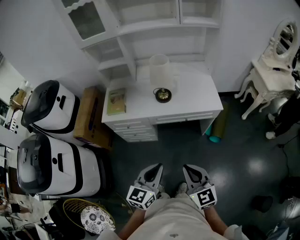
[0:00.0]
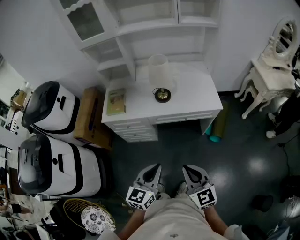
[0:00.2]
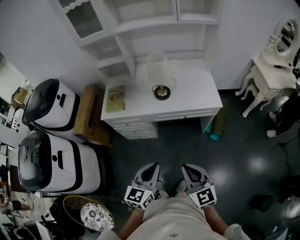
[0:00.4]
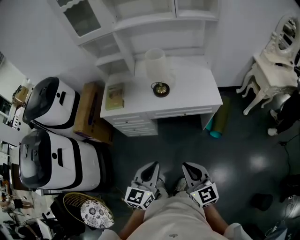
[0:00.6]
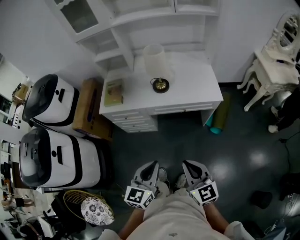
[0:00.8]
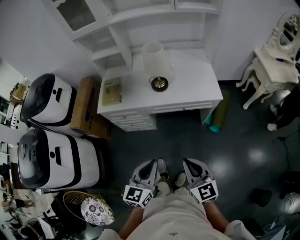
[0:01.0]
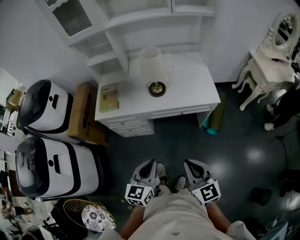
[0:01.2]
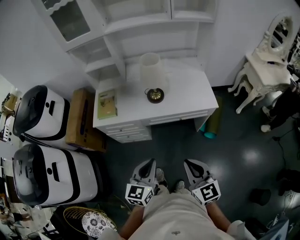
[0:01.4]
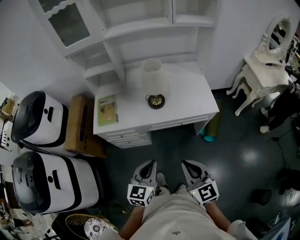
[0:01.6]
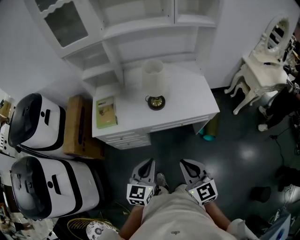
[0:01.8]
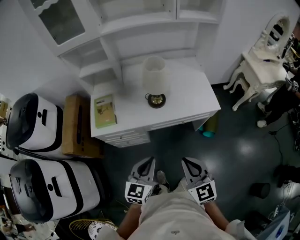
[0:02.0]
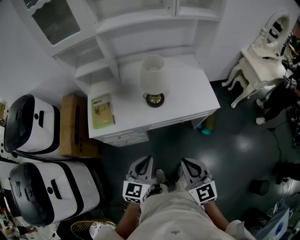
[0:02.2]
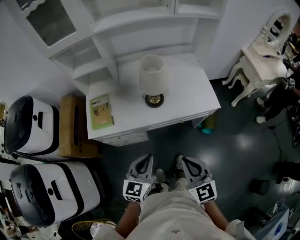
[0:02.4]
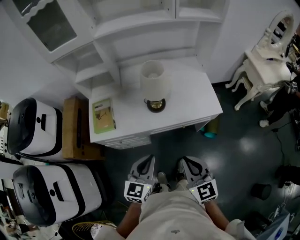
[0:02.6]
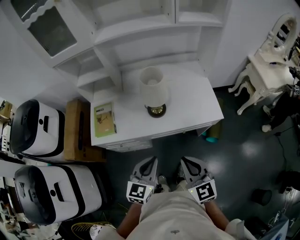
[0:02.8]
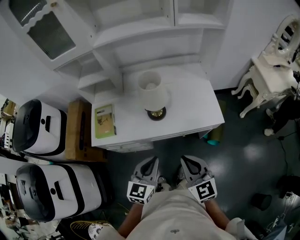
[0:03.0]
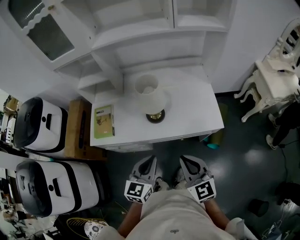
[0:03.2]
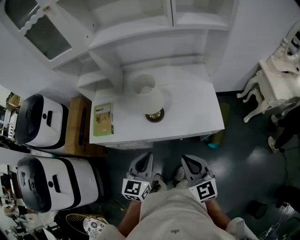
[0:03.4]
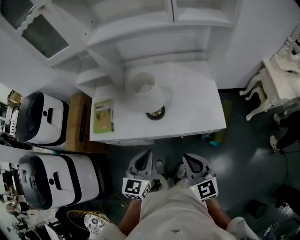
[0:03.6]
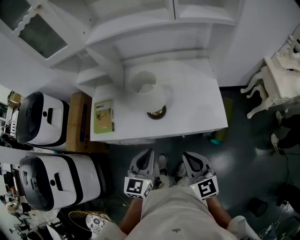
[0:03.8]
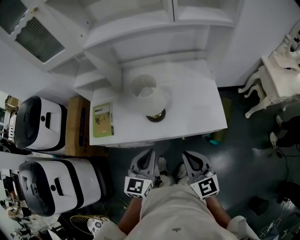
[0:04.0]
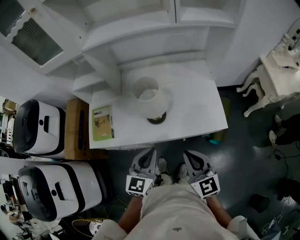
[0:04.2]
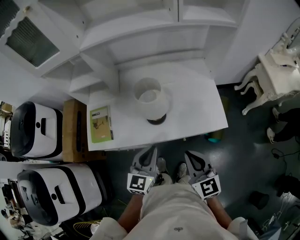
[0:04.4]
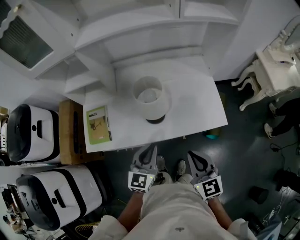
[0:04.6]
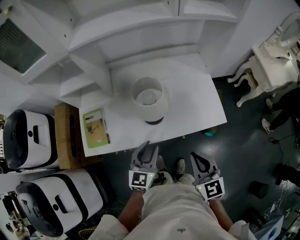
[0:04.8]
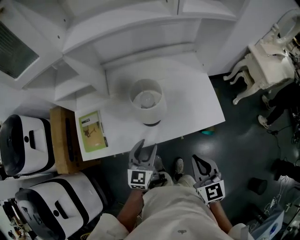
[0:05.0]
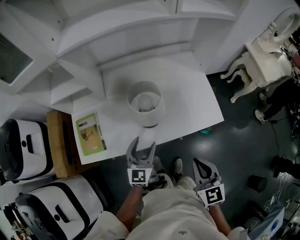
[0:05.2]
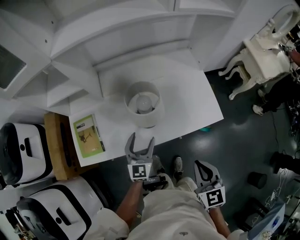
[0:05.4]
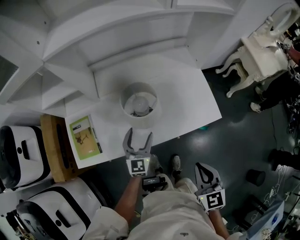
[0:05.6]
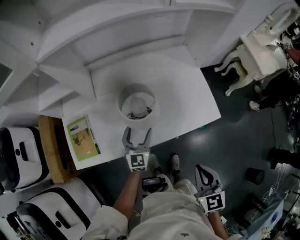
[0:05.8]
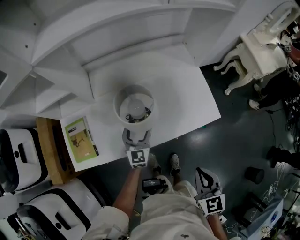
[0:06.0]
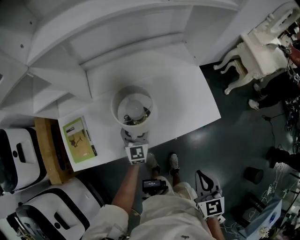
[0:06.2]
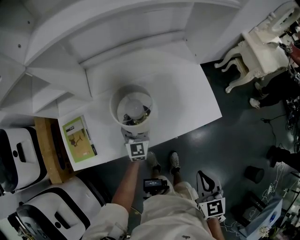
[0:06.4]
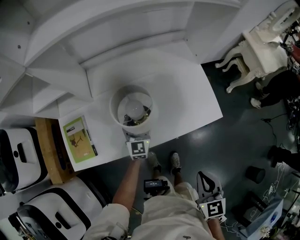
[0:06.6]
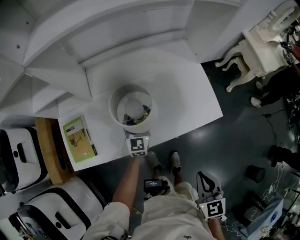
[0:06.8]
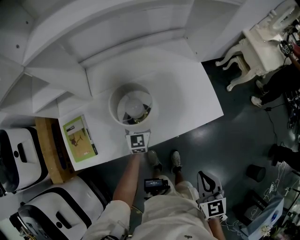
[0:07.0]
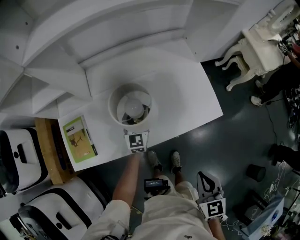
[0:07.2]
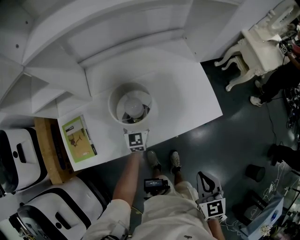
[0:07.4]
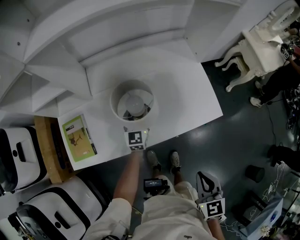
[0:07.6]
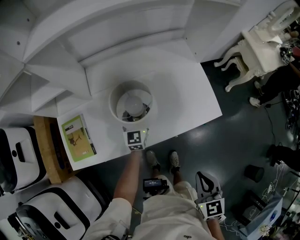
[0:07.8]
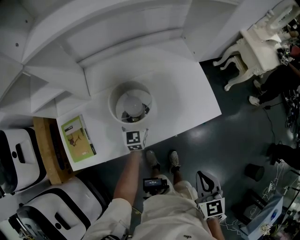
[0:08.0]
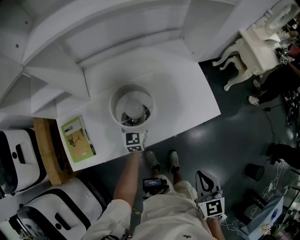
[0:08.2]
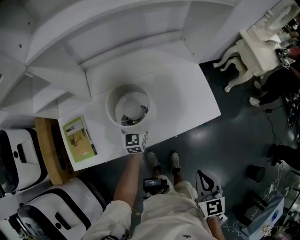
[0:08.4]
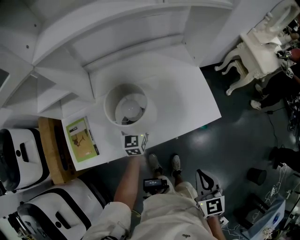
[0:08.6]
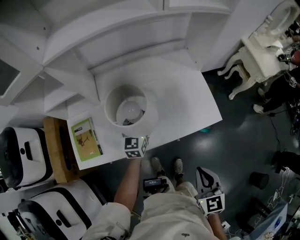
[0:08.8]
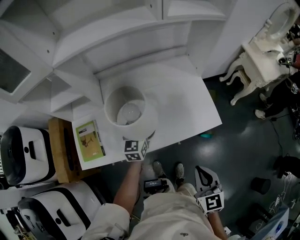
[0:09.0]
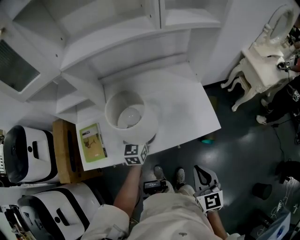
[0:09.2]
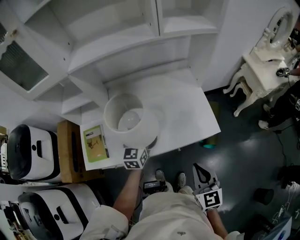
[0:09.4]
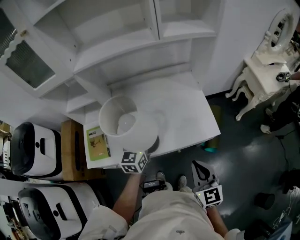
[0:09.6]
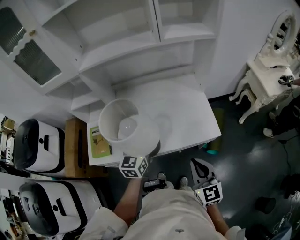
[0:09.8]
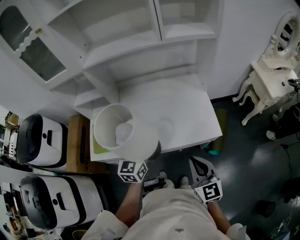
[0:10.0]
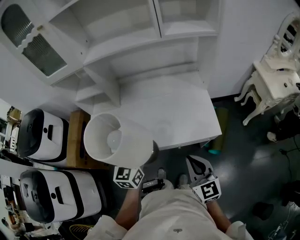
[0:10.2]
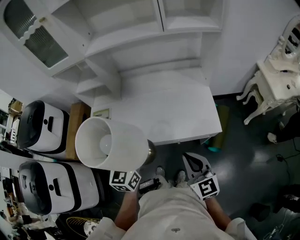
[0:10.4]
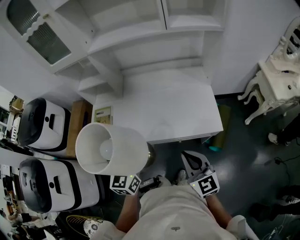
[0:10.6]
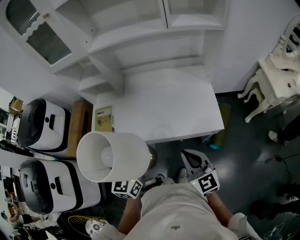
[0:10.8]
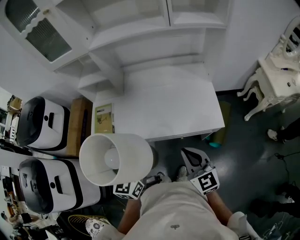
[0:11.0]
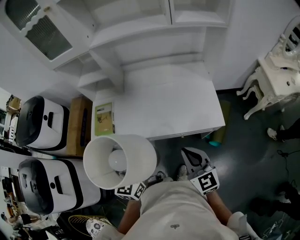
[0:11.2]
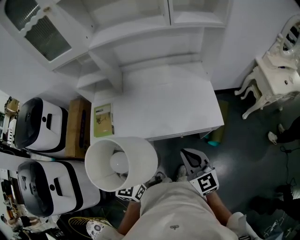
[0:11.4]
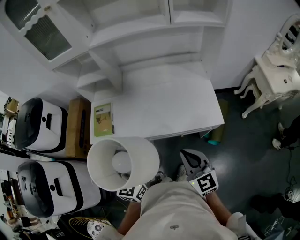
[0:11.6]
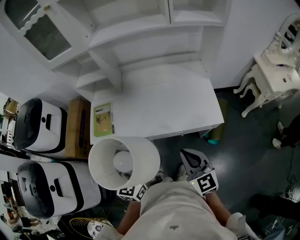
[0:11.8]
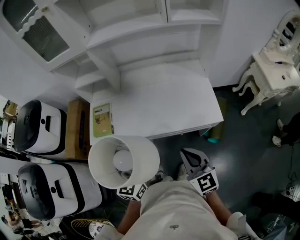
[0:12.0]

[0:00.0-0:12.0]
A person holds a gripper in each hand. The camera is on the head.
0:00.0 to 0:01.6: Both grippers move forward, some 10 cm.
0:01.6 to 0:03.0: The two grippers go approximately 15 cm forward.
0:03.0 to 0:04.4: The grippers both shift forward by about 10 cm.
0:04.4 to 0:06.0: The left gripper heads forward and downward, covering about 25 cm, and opens. The right gripper shifts about 5 cm downward, and rotates roughly 30 degrees.
0:06.0 to 0:07.6: The left gripper shifts about 5 cm forward, and closes up.
0:07.6 to 0:09.0: The left gripper is displaced upward by about 10 cm.
0:09.0 to 0:10.4: The left gripper travels backward and upward by about 25 cm, while the right gripper is displaced upward by approximately 5 cm, and swivels roughly 30 degrees.
0:10.4 to 0:12.0: The right gripper travels to the left by about 5 cm. Meanwhile the left gripper shifts about 5 cm backward.

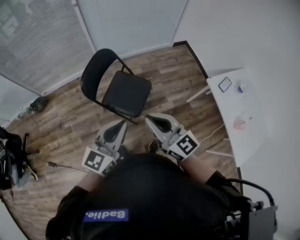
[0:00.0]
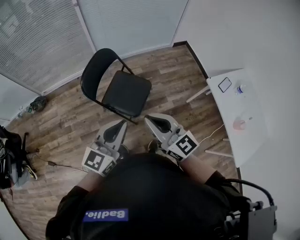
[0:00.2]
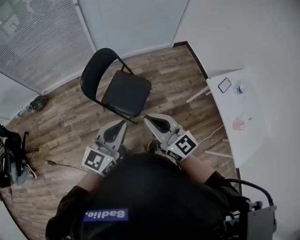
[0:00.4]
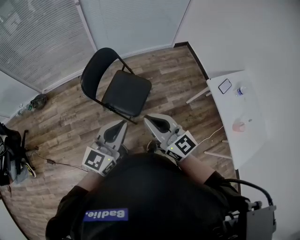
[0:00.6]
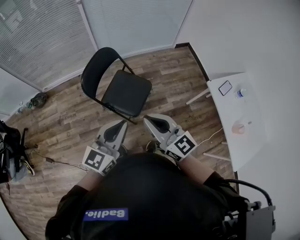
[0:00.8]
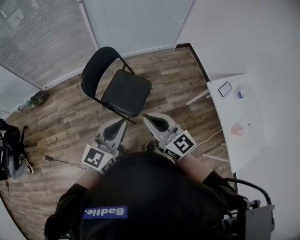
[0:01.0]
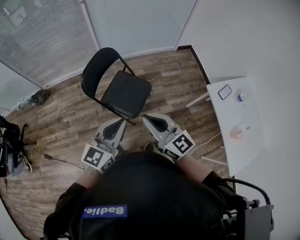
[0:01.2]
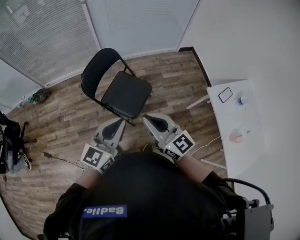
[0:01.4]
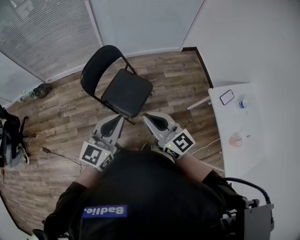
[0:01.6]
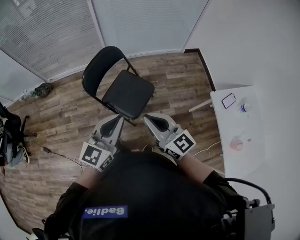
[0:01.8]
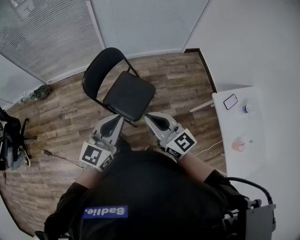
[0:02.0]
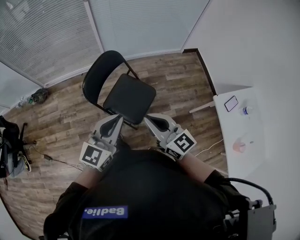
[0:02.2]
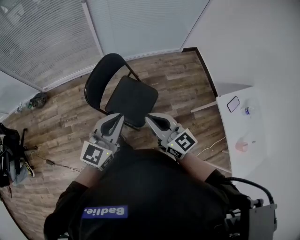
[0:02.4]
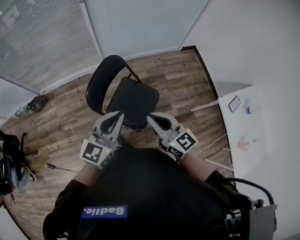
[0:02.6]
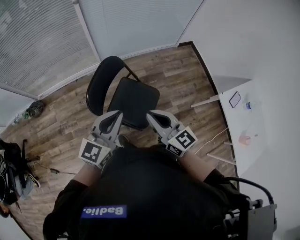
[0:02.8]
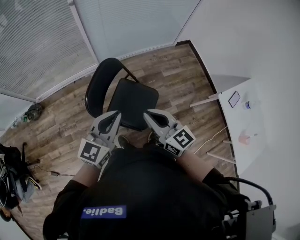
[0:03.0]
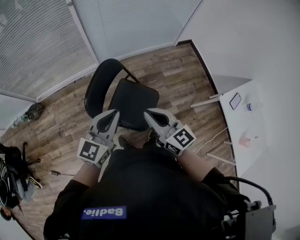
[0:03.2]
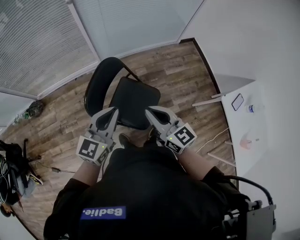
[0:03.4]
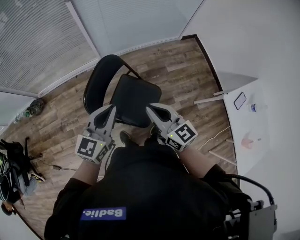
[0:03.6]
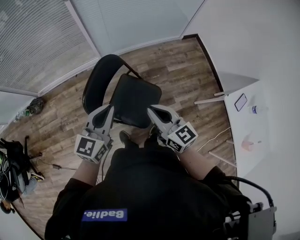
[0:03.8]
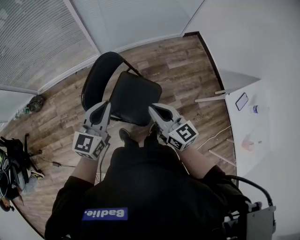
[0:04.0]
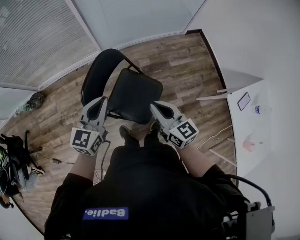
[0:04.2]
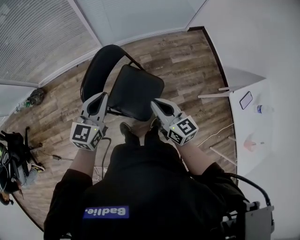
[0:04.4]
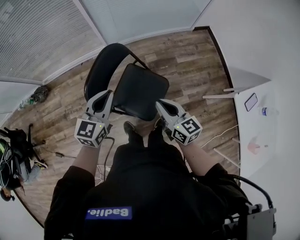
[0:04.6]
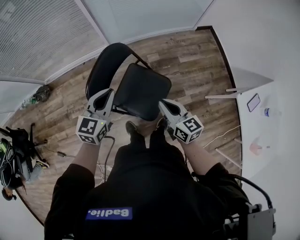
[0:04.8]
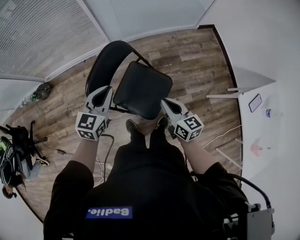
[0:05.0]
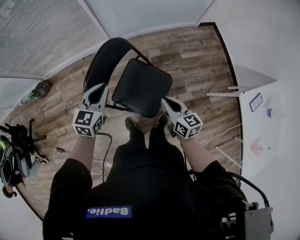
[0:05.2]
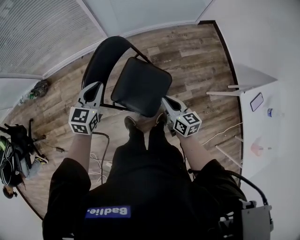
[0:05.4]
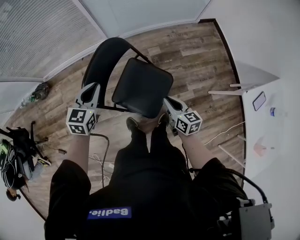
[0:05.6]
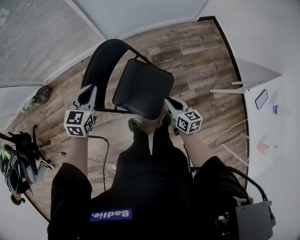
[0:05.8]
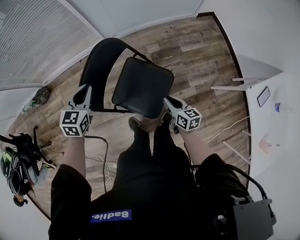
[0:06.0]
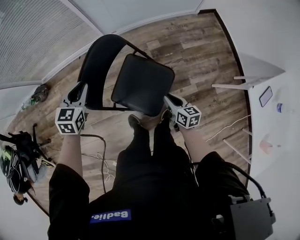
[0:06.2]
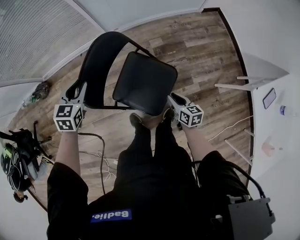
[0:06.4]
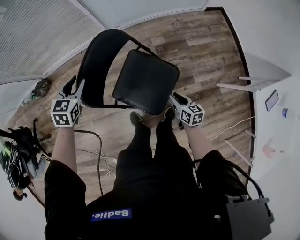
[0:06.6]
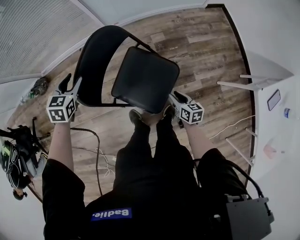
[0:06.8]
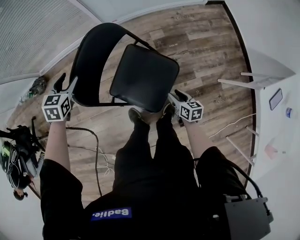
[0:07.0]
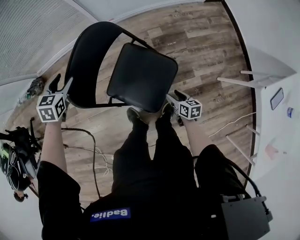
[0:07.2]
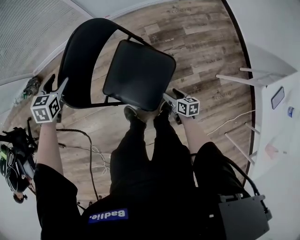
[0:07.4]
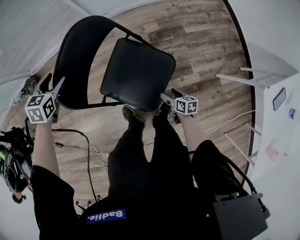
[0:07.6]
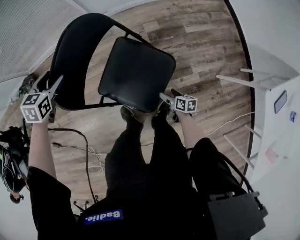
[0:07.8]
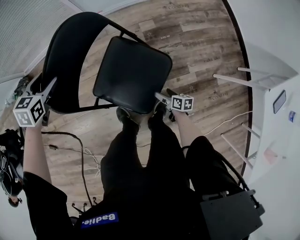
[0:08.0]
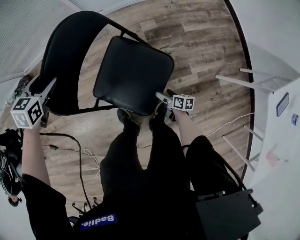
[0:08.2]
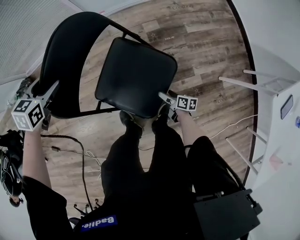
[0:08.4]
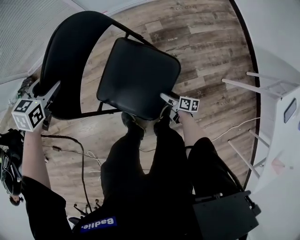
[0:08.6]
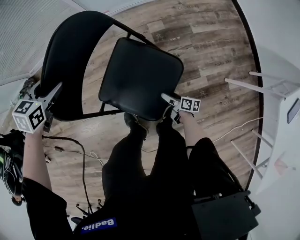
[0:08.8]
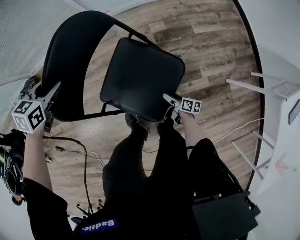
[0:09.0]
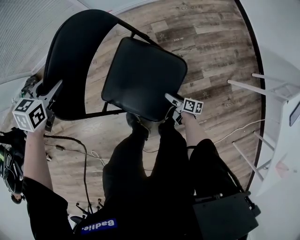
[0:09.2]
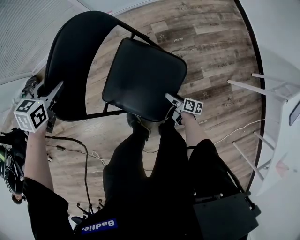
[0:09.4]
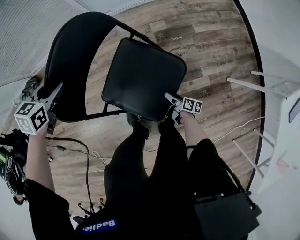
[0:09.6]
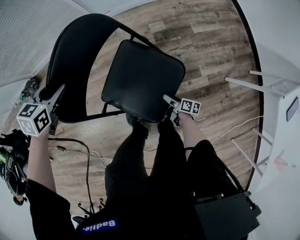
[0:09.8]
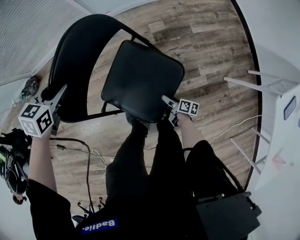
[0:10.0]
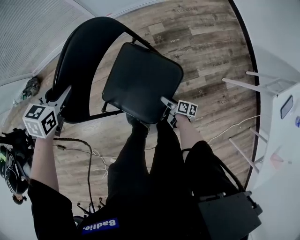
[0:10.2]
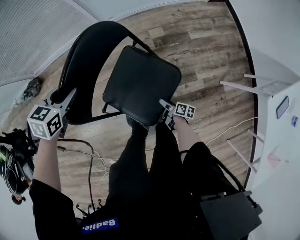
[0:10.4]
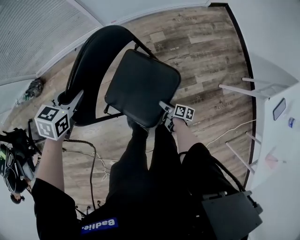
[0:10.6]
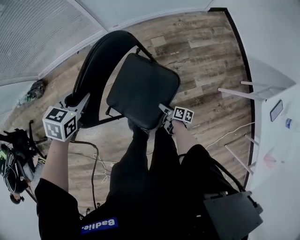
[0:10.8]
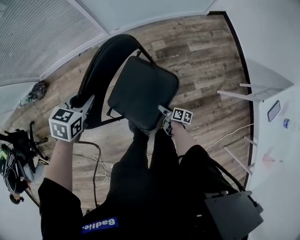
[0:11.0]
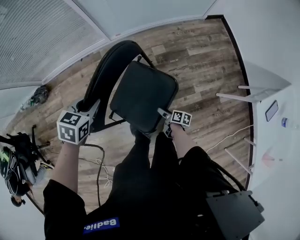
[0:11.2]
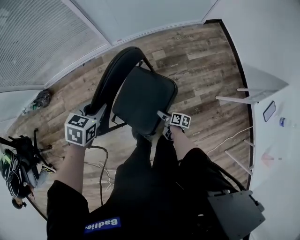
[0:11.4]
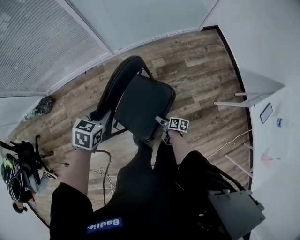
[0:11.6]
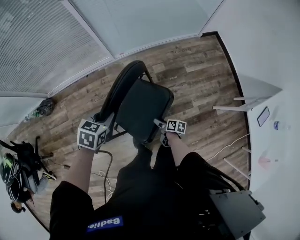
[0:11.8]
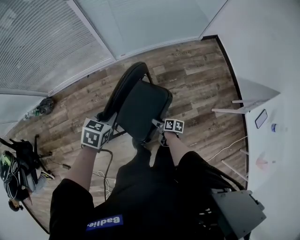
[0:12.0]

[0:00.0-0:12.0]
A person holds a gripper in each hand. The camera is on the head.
0:00.0 to 0:01.6: The right gripper moves approximately 5 cm.
0:01.6 to 0:03.0: The two grippers go some 25 cm forward and to the left.
0:03.0 to 0:04.4: The left gripper is displaced forward and downward by some 10 cm. The right gripper moves downward, to the right and forward, some 15 cm.
0:04.4 to 0:06.0: The left gripper heads downward, forward and to the left, covering approximately 15 cm, and swivels about 20 degrees; the right gripper is displaced downward by some 25 cm, and turns by about 20 degrees.
0:06.0 to 0:07.6: The right gripper travels downward by some 25 cm, swivels approximately 20 degrees, and opens up. Meanwhile the left gripper is displaced downward, to the left and forward by some 20 cm, and opens its fingers.
0:07.6 to 0:09.0: The right gripper is displaced downward by approximately 15 cm, and changes its angle by roughly 20 degrees.
0:09.0 to 0:10.4: The grippers both shift upward by about 5 cm.
0:10.4 to 0:12.0: The right gripper moves upward and to the left, roughly 20 cm; the left gripper heads upward and backward, covering some 10 cm.
